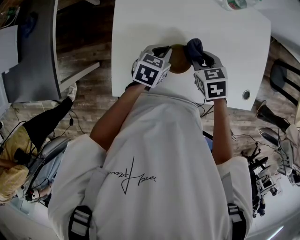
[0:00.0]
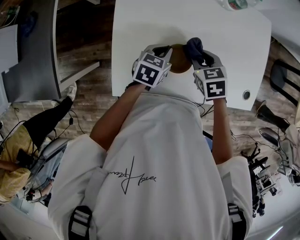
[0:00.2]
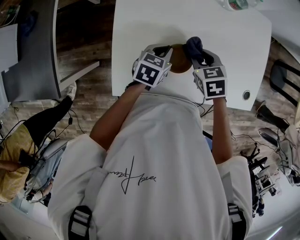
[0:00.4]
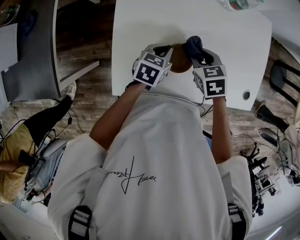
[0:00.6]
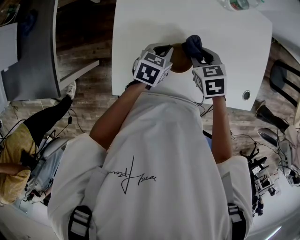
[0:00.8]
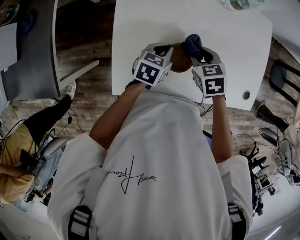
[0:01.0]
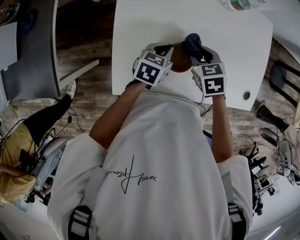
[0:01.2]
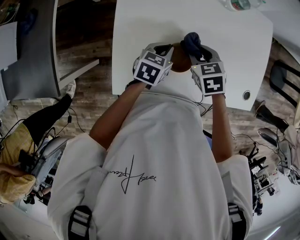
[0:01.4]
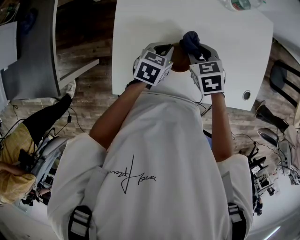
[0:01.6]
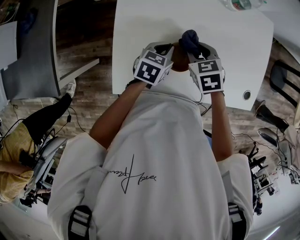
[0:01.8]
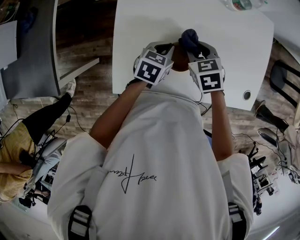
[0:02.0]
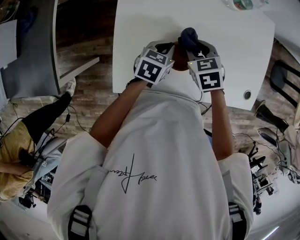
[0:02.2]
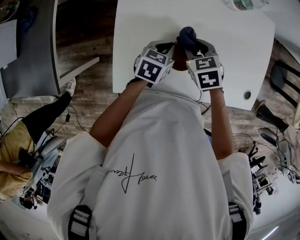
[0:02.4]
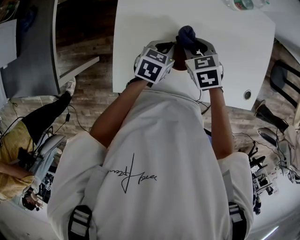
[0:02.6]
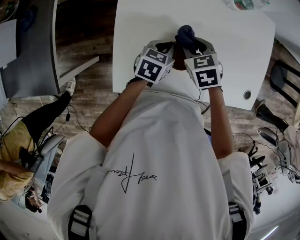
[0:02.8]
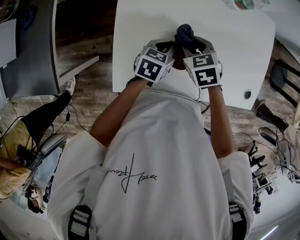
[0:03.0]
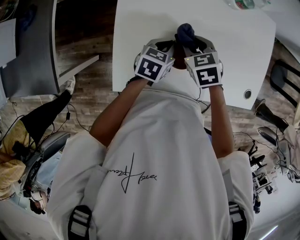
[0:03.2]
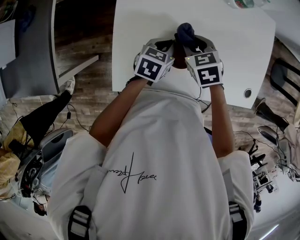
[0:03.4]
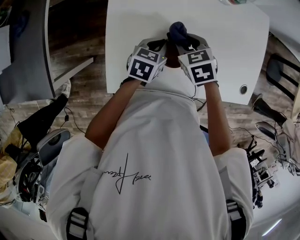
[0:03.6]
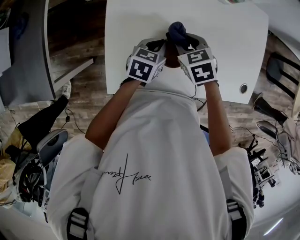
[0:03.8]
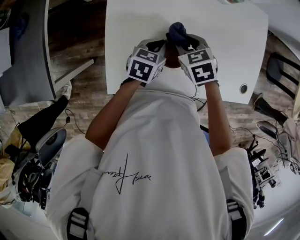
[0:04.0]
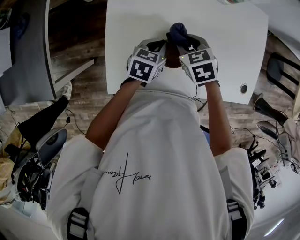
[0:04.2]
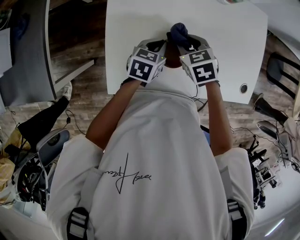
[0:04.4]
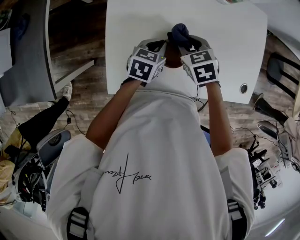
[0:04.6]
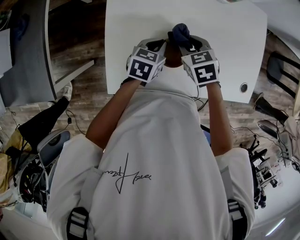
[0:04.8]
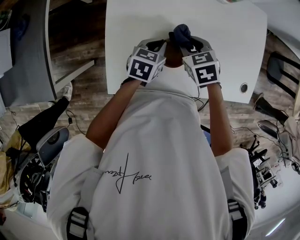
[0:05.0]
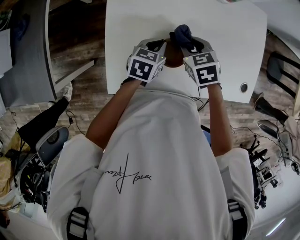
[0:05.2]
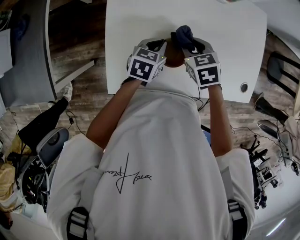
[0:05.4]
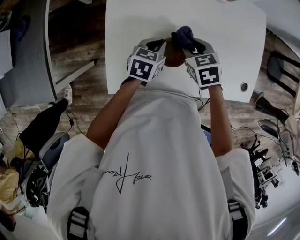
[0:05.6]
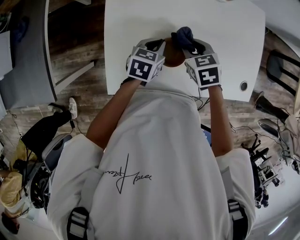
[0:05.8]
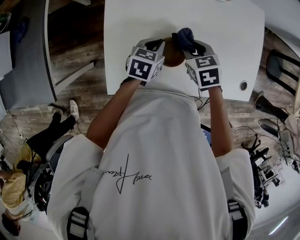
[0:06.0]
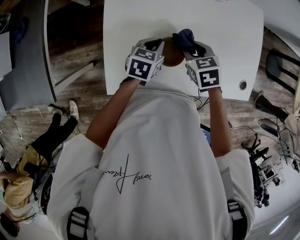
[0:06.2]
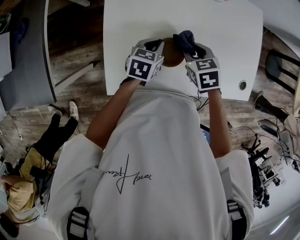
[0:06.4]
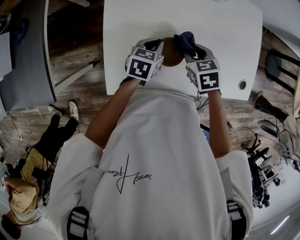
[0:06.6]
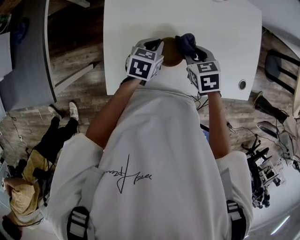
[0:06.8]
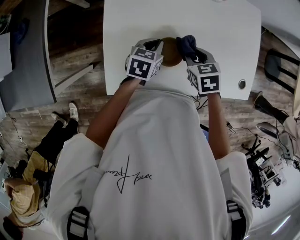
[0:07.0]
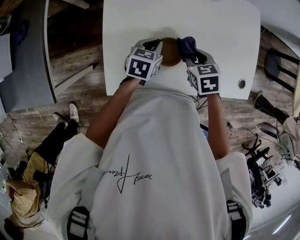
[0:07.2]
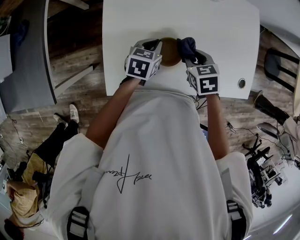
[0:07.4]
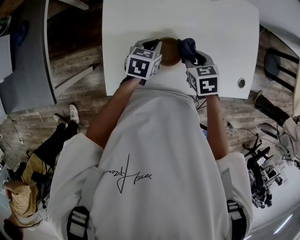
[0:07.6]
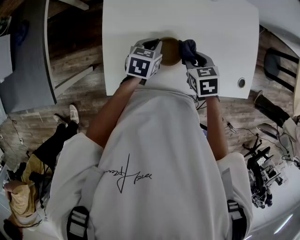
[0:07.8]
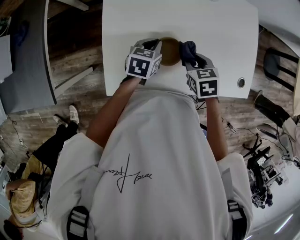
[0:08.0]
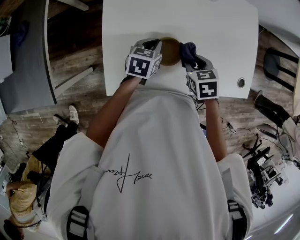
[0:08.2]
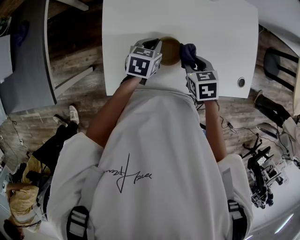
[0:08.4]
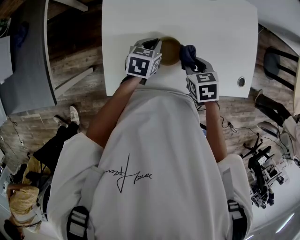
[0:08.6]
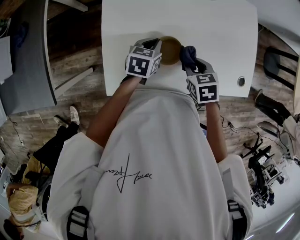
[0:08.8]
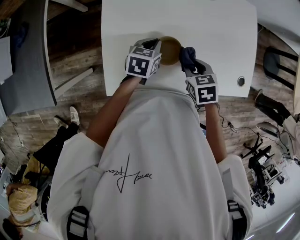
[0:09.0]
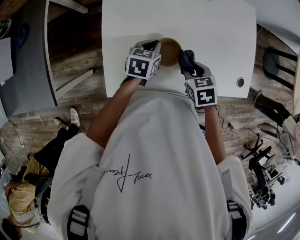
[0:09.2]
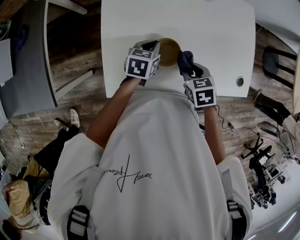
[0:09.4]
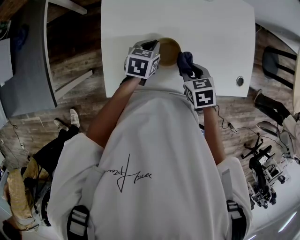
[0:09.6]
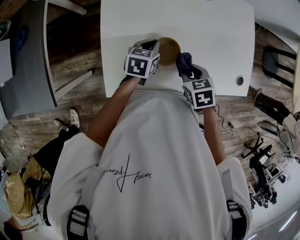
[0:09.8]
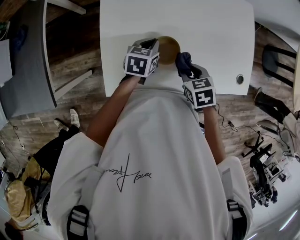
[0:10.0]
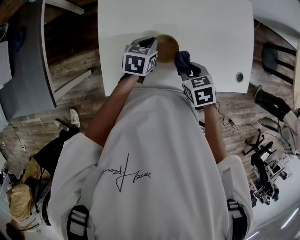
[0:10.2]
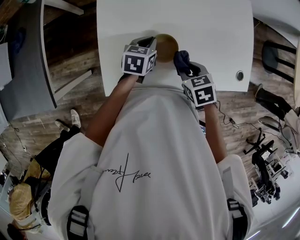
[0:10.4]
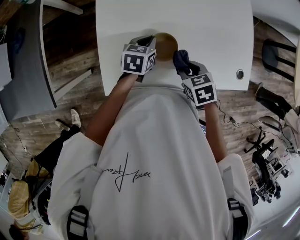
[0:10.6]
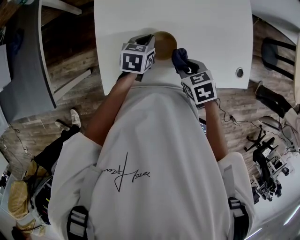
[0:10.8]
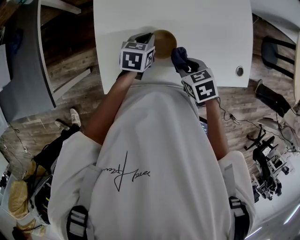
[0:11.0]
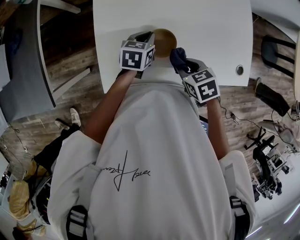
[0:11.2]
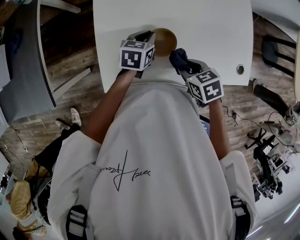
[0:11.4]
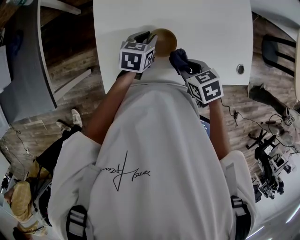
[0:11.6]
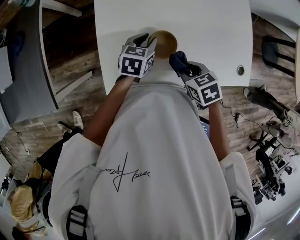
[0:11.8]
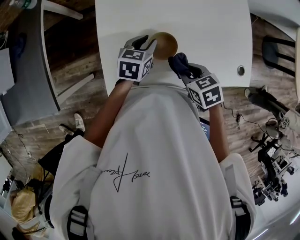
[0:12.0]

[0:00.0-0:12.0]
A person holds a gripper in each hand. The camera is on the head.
0:00.0 to 0:01.6: There are only small adjustments of the grippers.
0:01.6 to 0:06.0: There are only small adjustments of the grippers.
0:06.0 to 0:07.6: The grippers stay close to where they were, moving slightly.
0:07.6 to 0:09.0: The grippers make only small movements.
0:09.0 to 0:10.4: The grippers stay close to where they were, moving slightly.
0:10.4 to 0:12.0: The left gripper opens.

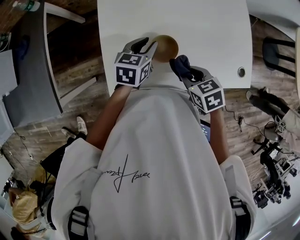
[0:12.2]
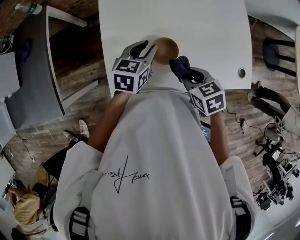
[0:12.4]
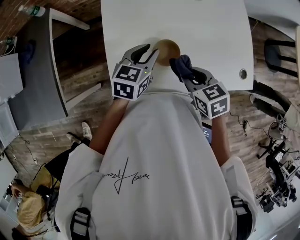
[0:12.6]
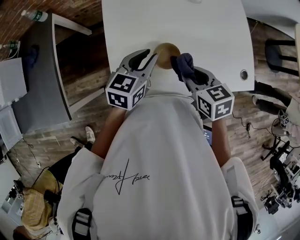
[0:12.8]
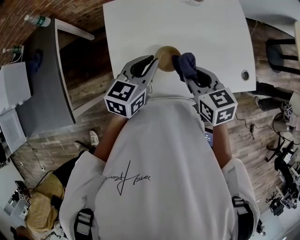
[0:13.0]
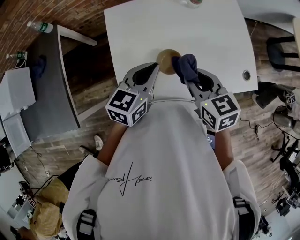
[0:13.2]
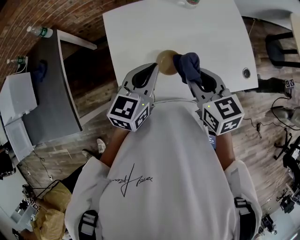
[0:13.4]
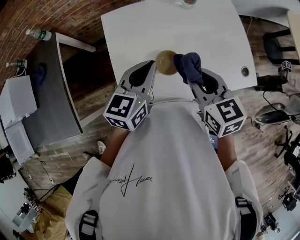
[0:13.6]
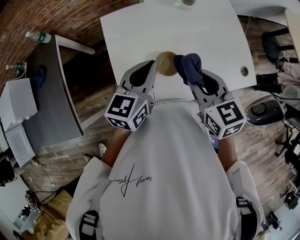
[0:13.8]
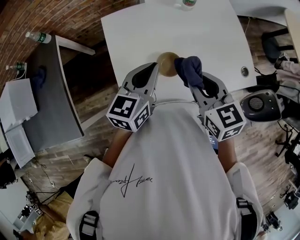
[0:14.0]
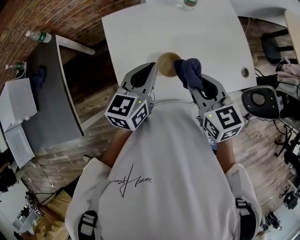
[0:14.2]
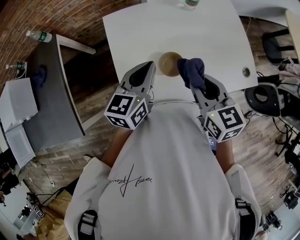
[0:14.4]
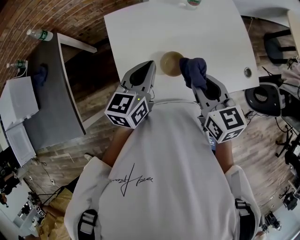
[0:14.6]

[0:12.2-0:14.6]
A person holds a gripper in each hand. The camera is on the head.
0:12.2 to 0:13.4: Both grippers travel together upward, approximately 15 cm. The right gripper rotates some 30 degrees. Meanwhile the left gripper changes its angle by approximately 20 degrees, and closes.
0:13.4 to 0:14.6: The grippers move only a little.

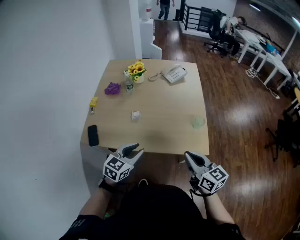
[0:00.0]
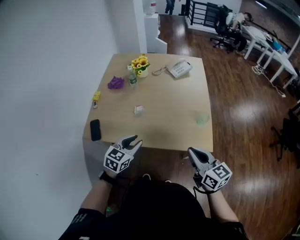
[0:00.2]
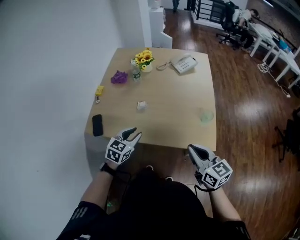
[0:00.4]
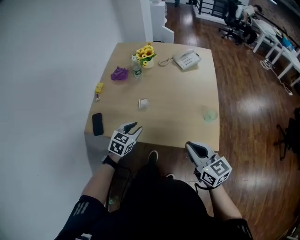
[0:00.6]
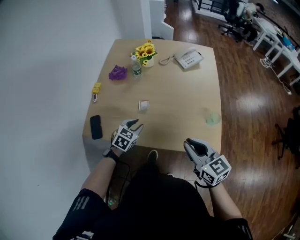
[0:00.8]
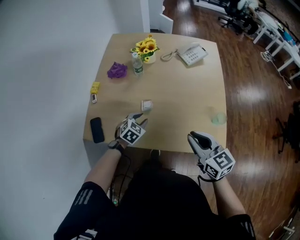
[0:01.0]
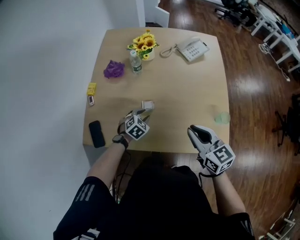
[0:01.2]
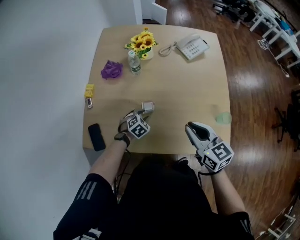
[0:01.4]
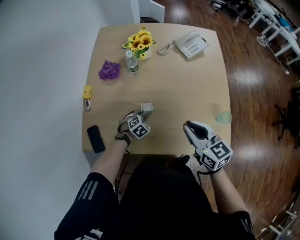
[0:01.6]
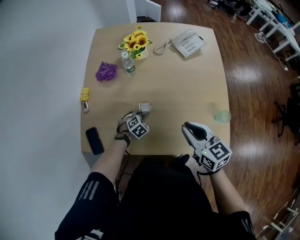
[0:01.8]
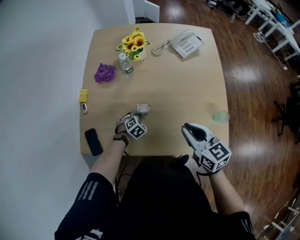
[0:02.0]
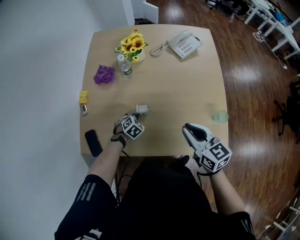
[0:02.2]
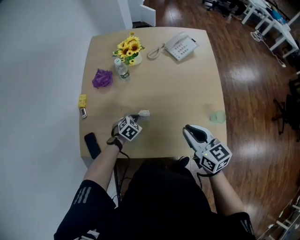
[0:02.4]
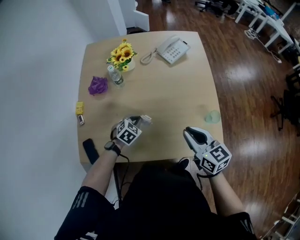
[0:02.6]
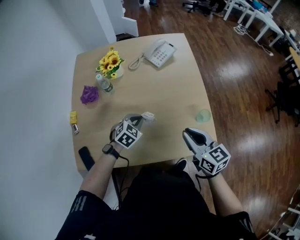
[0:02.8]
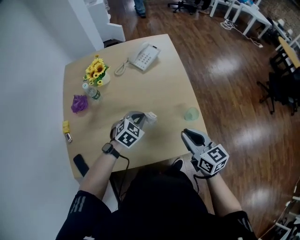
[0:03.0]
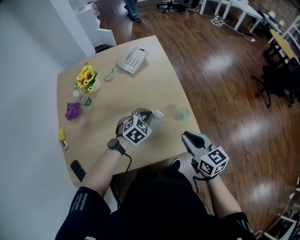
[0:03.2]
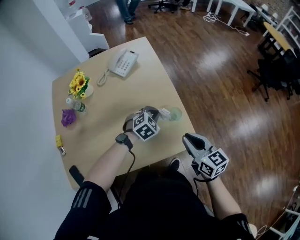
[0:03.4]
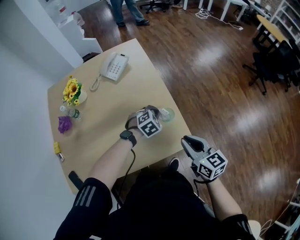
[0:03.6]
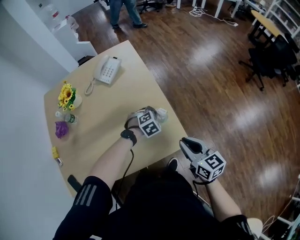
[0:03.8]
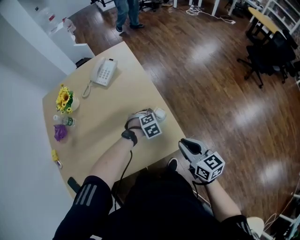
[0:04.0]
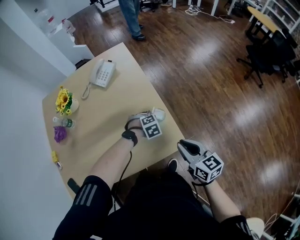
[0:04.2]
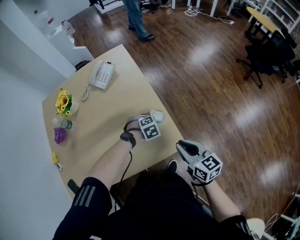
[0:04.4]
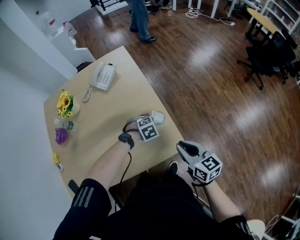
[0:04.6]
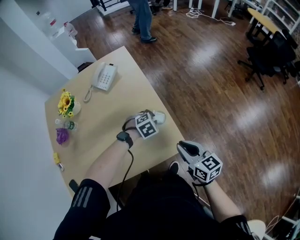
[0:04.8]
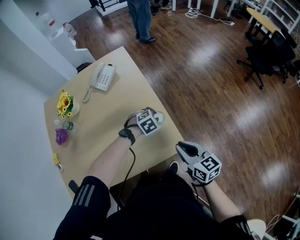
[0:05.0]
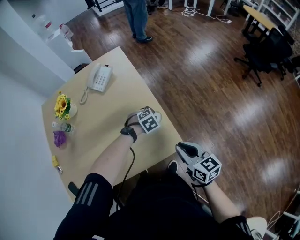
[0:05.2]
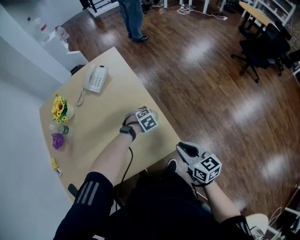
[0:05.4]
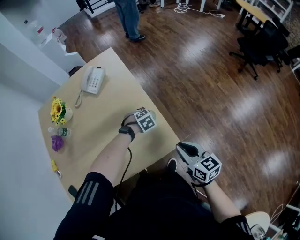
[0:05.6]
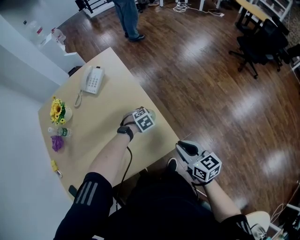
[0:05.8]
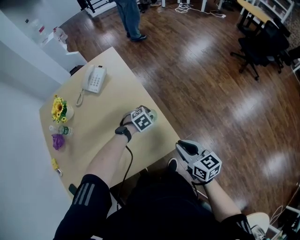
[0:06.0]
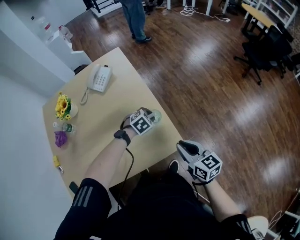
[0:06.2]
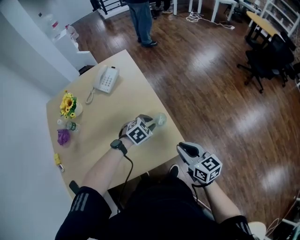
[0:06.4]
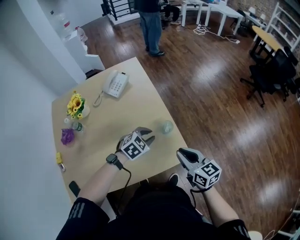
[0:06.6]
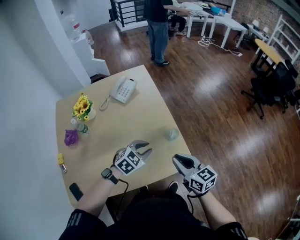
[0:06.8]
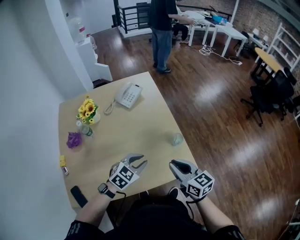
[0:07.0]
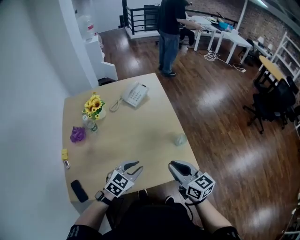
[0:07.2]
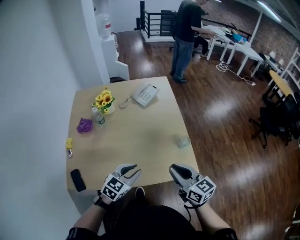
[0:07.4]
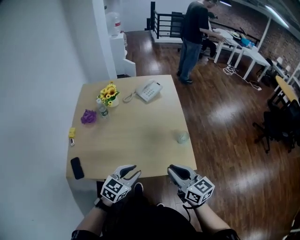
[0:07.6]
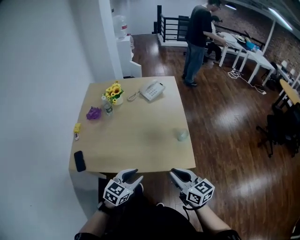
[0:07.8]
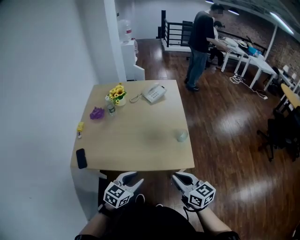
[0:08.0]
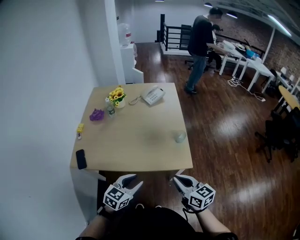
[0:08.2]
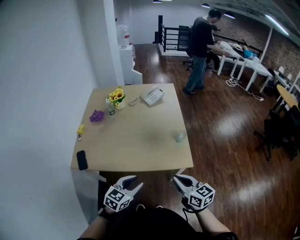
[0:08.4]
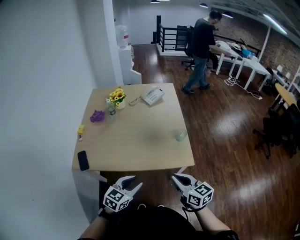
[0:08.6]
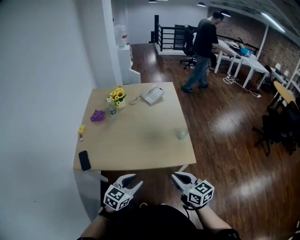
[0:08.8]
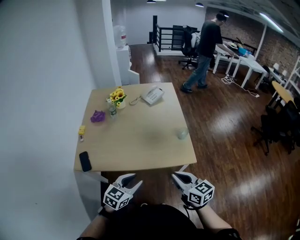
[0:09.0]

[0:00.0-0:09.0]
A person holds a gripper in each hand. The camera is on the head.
0:00.0 to 0:01.6: The right gripper moves forward, roughly 25 cm. Meanwhile the left gripper moves downward and forward, approximately 40 cm, and tilts its fingers roughly 40 degrees downward.
0:01.6 to 0:03.0: The left gripper heads to the right and upward, covering about 30 cm, changes its angle by roughly 20 degrees, and closes up, while the right gripper is displaced to the right by about 15 cm.
0:03.0 to 0:04.4: The left gripper is displaced to the right and downward by about 30 cm, and rotates about 40 degrees. Meanwhile the right gripper travels to the right by about 15 cm.
0:04.4 to 0:06.0: The left gripper opens its fingers.
0:06.0 to 0:07.6: The left gripper heads backward, to the left and upward, covering about 40 cm, and tips its fingers upward by about 40 degrees. The right gripper shifts roughly 20 cm to the left, backward and upward, and turns by approximately 30 degrees.
0:07.6 to 0:09.0: The grippers both shift backward by approximately 15 cm.
